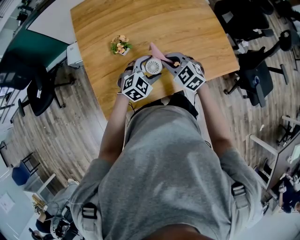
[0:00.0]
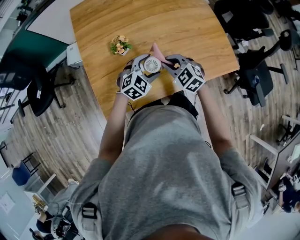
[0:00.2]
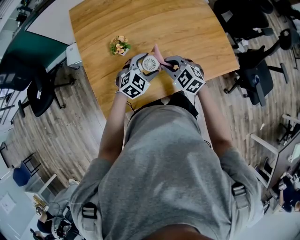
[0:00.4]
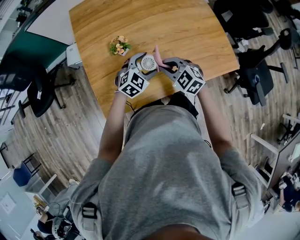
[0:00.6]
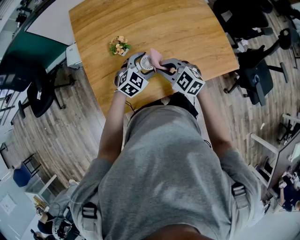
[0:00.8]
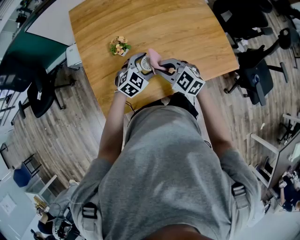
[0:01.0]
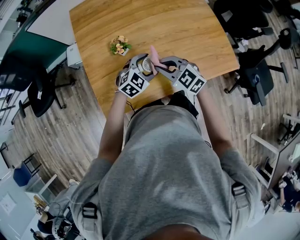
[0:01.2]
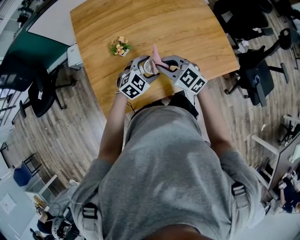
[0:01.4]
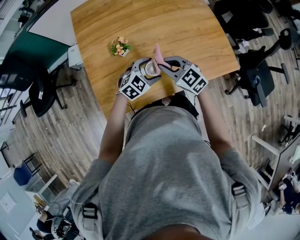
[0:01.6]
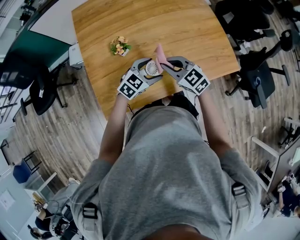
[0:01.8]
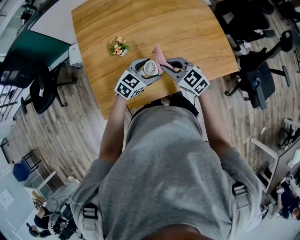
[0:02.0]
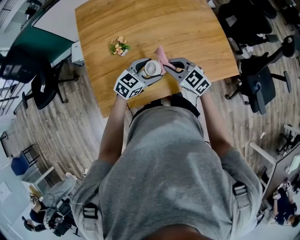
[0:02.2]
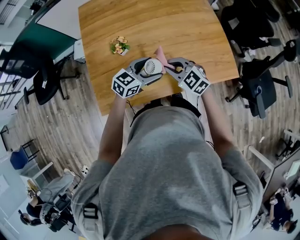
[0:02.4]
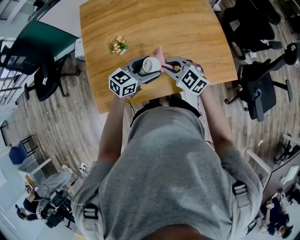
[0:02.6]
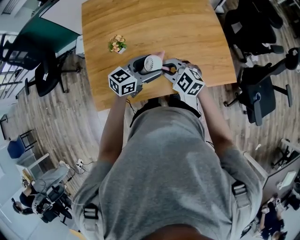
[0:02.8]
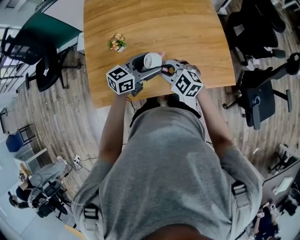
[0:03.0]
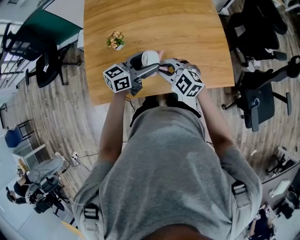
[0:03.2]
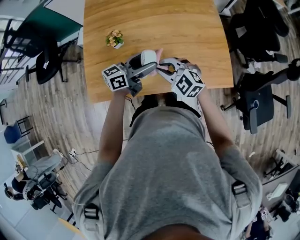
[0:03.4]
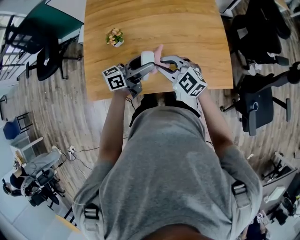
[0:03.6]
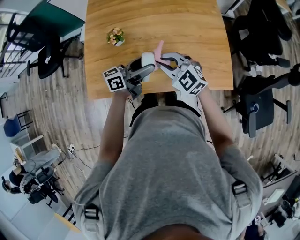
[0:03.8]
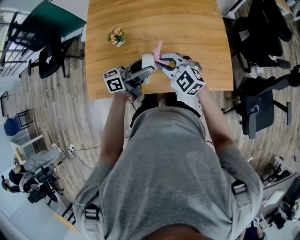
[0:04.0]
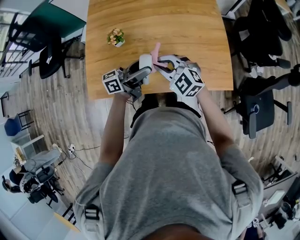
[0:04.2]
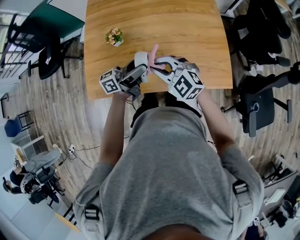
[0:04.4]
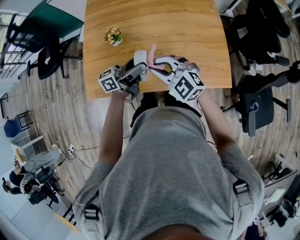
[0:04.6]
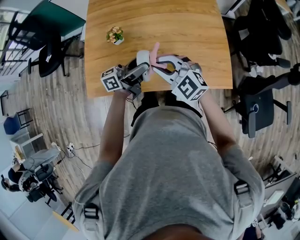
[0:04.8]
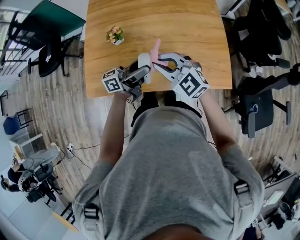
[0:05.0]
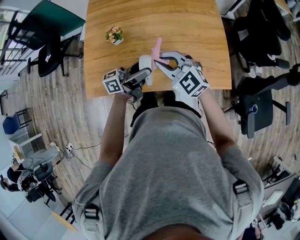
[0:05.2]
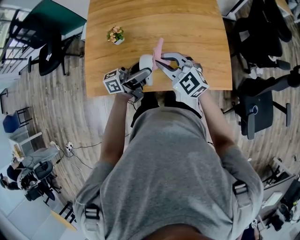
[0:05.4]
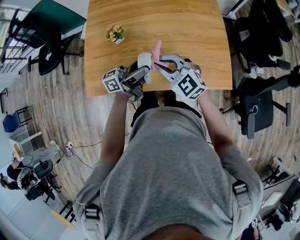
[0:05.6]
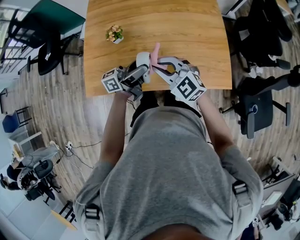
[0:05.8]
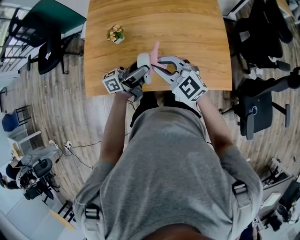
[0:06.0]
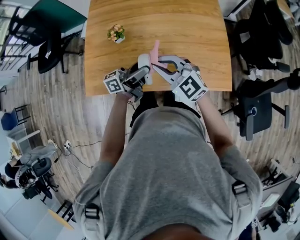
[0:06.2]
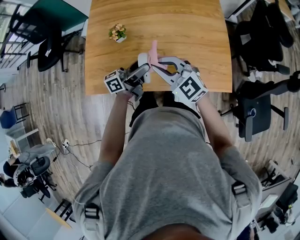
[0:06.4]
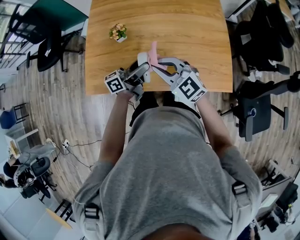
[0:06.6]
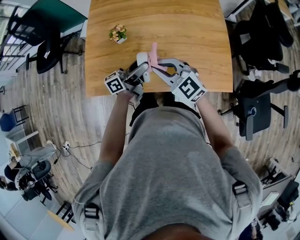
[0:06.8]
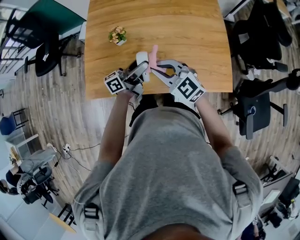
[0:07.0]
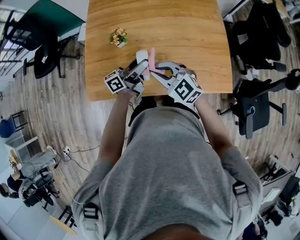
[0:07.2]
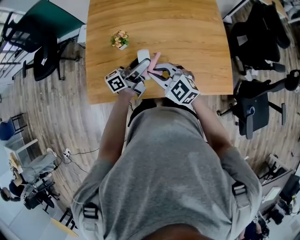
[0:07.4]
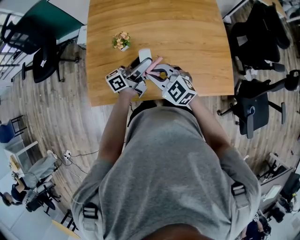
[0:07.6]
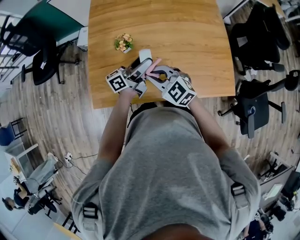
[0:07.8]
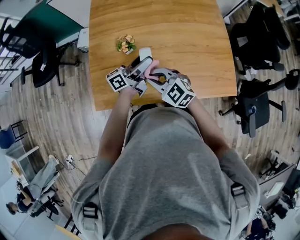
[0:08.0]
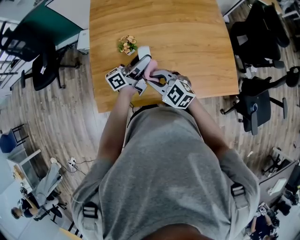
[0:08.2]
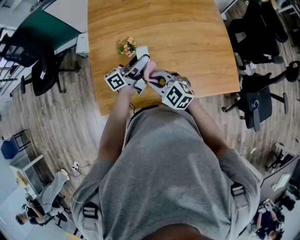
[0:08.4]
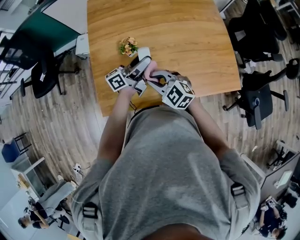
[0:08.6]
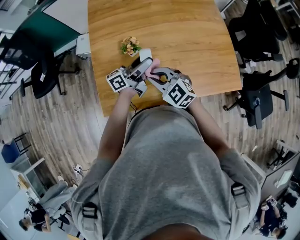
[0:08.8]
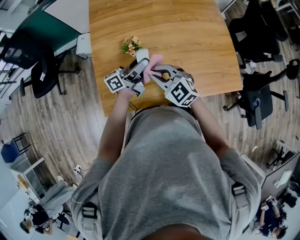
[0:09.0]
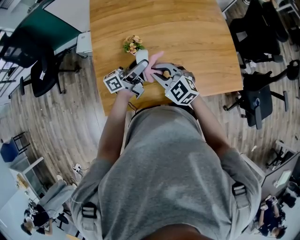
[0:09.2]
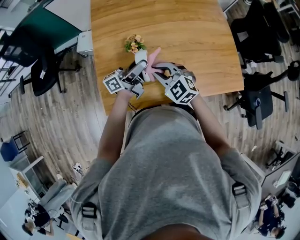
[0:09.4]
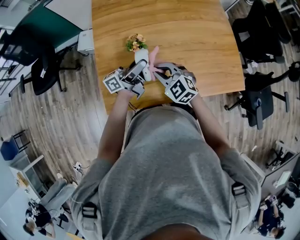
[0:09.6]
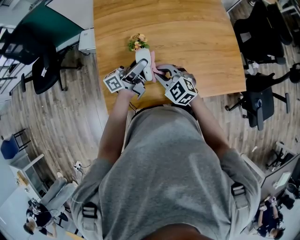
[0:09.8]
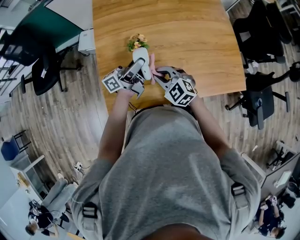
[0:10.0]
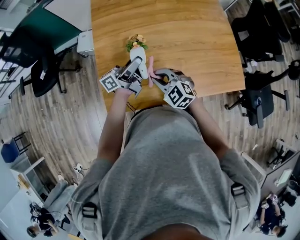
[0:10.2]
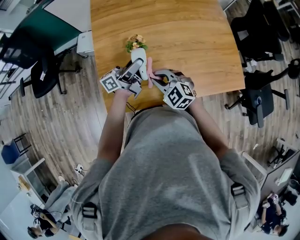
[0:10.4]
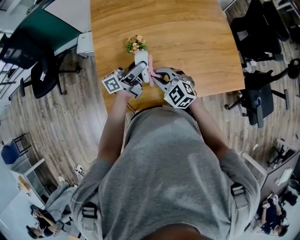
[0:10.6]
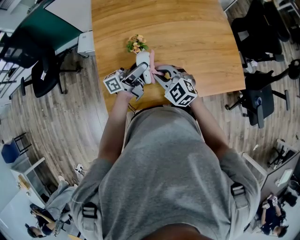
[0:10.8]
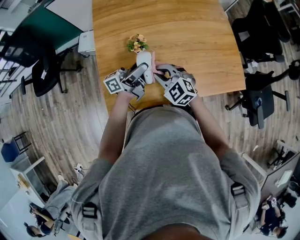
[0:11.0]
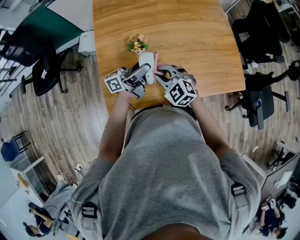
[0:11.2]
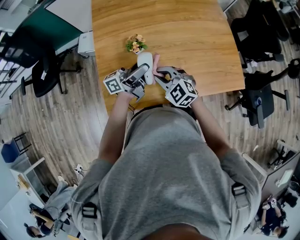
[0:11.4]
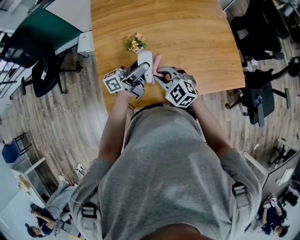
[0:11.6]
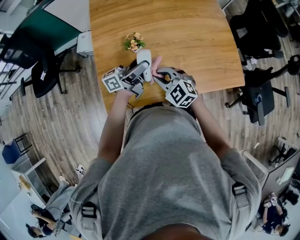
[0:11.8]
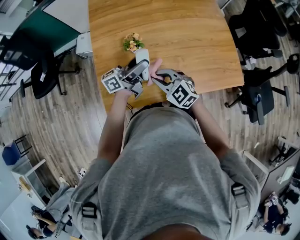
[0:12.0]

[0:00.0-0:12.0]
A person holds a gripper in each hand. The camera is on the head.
0:00.0 to 0:01.6: The grippers stay close to where they were, moving slightly.
0:01.6 to 0:03.0: The right gripper heads to the right, covering roughly 5 cm, and rotates approximately 20 degrees; the left gripper travels upward and to the right by roughly 10 cm, and turns by approximately 50 degrees.
0:03.0 to 0:04.4: The left gripper turns by about 40 degrees. The right gripper travels upward by about 5 cm.
0:04.4 to 0:06.0: The grippers move only a little.
0:06.0 to 0:07.6: The right gripper goes some 10 cm to the left, while the left gripper shifts about 10 cm forward and to the left.
0:07.6 to 0:09.0: The two grippers go roughly 10 cm to the left.
0:09.0 to 0:10.4: The right gripper goes approximately 5 cm downward.
0:10.4 to 0:12.0: There are only small adjustments of the grippers.

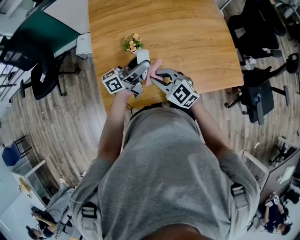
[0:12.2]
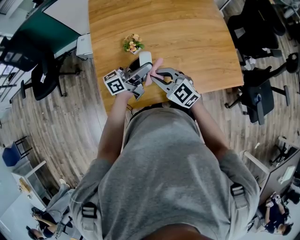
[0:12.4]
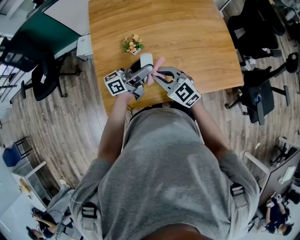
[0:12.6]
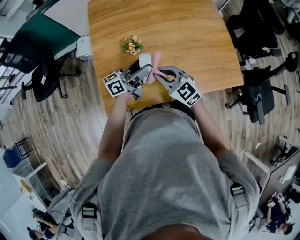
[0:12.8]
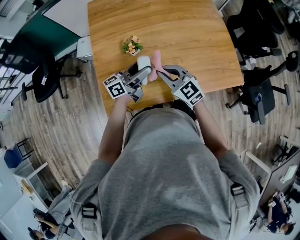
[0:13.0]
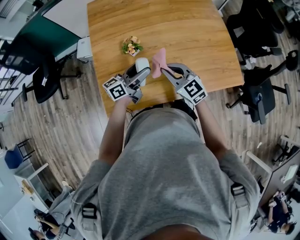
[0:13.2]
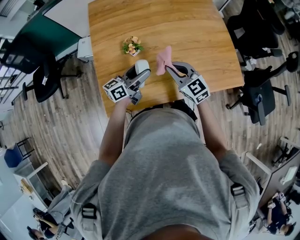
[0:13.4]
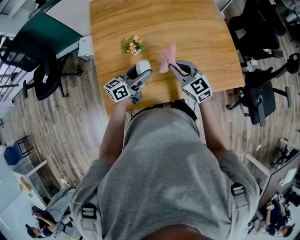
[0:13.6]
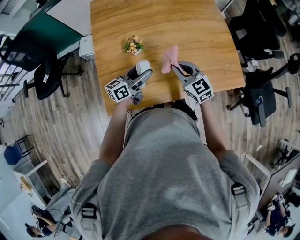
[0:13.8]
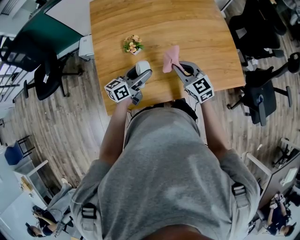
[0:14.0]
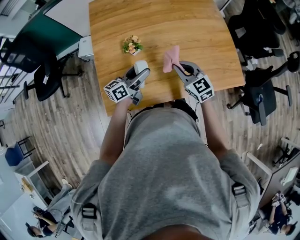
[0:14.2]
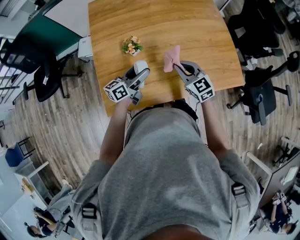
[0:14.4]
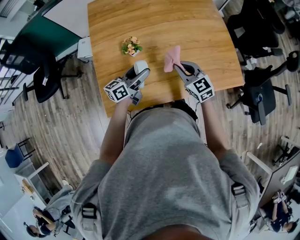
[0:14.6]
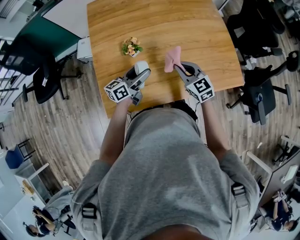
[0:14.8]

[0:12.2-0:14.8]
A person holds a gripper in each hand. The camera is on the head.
0:12.2 to 0:13.4: The left gripper travels downward by roughly 5 cm; the right gripper goes approximately 10 cm to the right.
0:13.4 to 0:14.8: The right gripper shifts by about 5 cm.

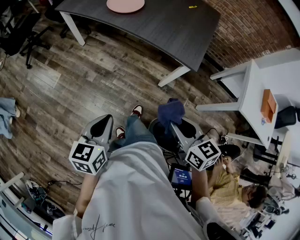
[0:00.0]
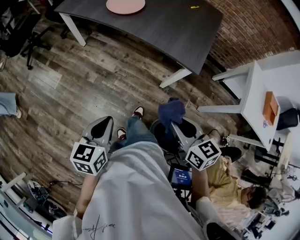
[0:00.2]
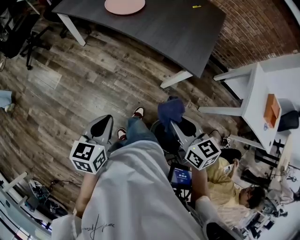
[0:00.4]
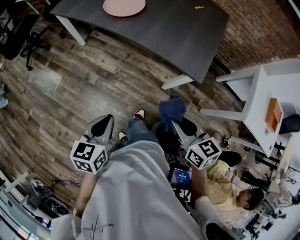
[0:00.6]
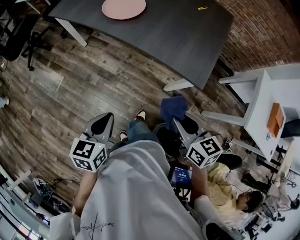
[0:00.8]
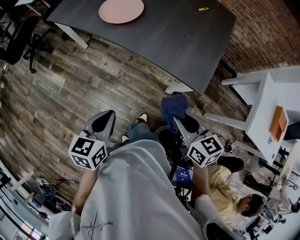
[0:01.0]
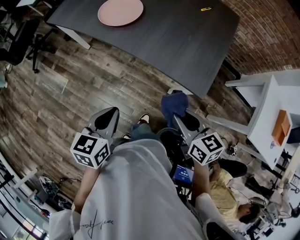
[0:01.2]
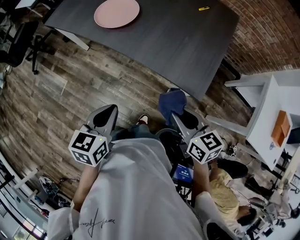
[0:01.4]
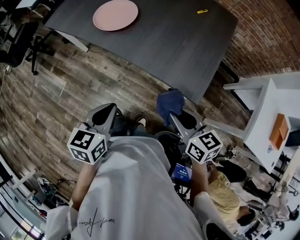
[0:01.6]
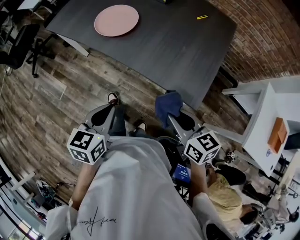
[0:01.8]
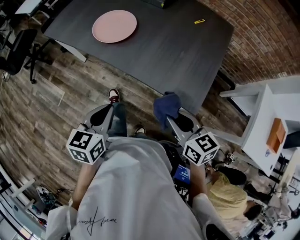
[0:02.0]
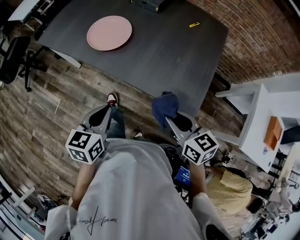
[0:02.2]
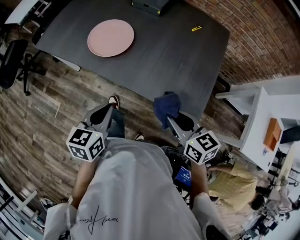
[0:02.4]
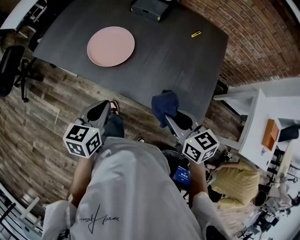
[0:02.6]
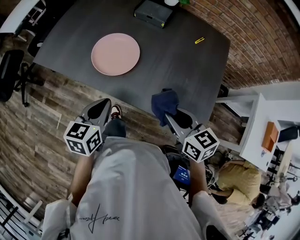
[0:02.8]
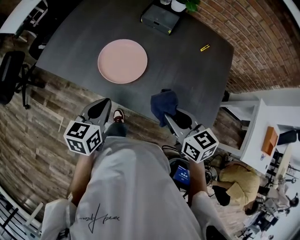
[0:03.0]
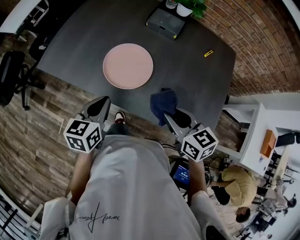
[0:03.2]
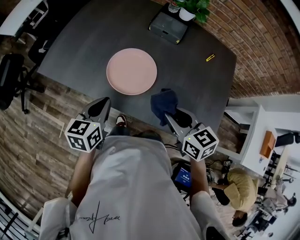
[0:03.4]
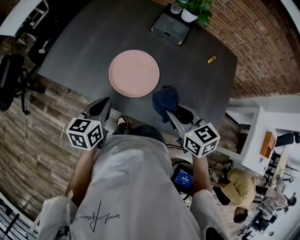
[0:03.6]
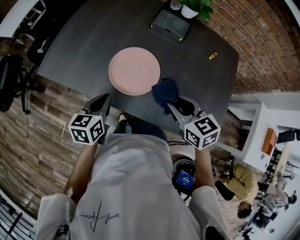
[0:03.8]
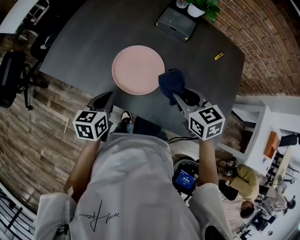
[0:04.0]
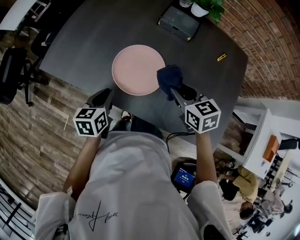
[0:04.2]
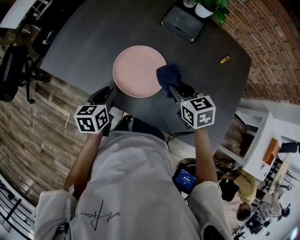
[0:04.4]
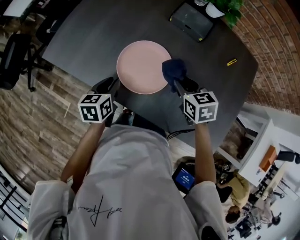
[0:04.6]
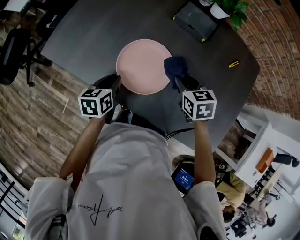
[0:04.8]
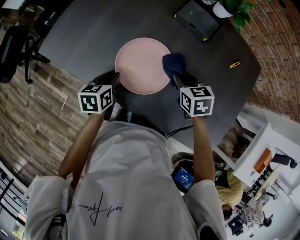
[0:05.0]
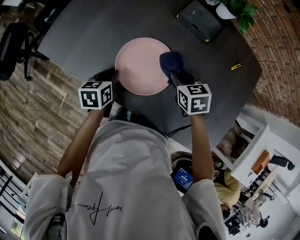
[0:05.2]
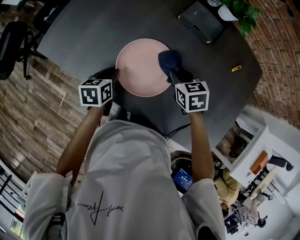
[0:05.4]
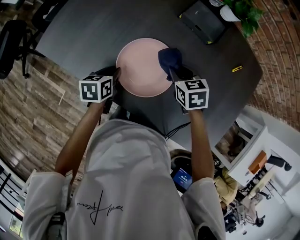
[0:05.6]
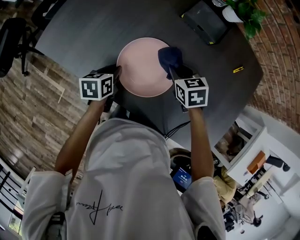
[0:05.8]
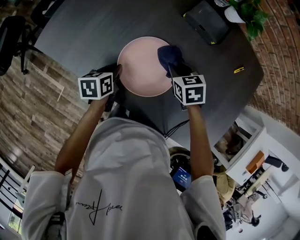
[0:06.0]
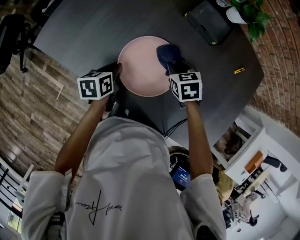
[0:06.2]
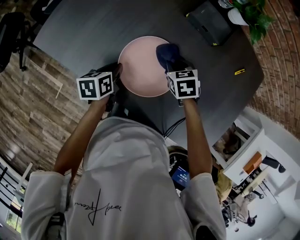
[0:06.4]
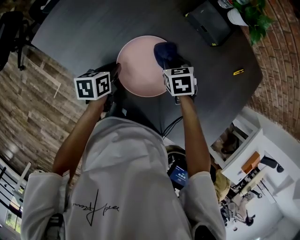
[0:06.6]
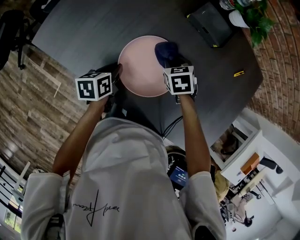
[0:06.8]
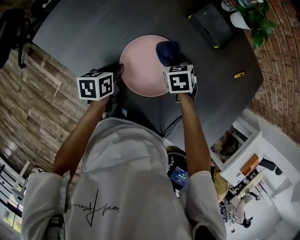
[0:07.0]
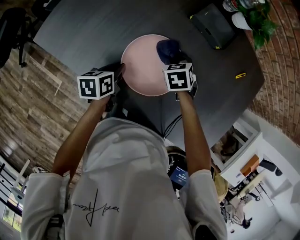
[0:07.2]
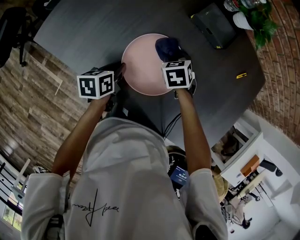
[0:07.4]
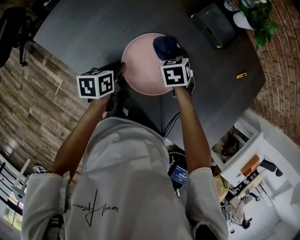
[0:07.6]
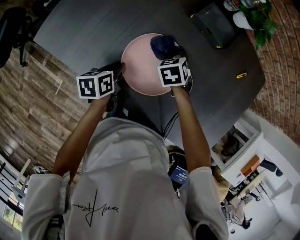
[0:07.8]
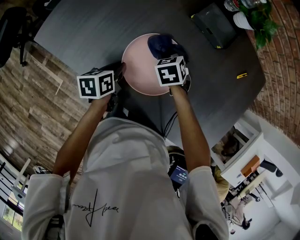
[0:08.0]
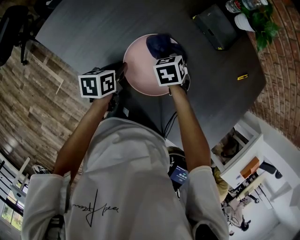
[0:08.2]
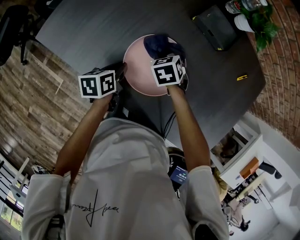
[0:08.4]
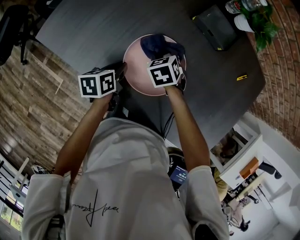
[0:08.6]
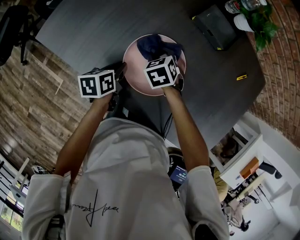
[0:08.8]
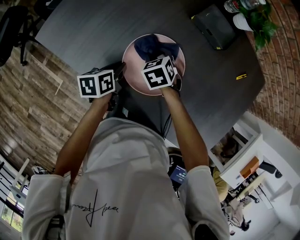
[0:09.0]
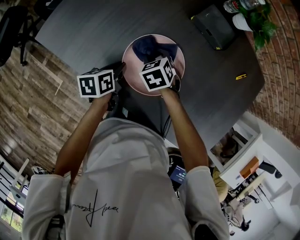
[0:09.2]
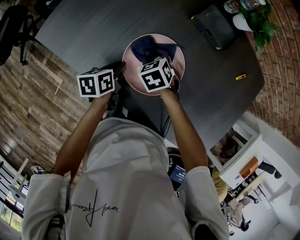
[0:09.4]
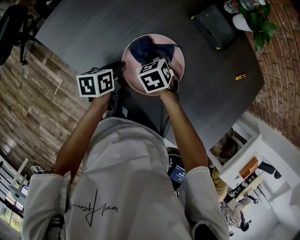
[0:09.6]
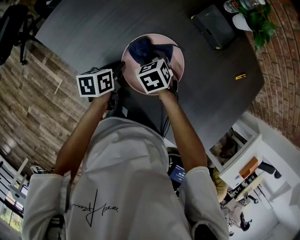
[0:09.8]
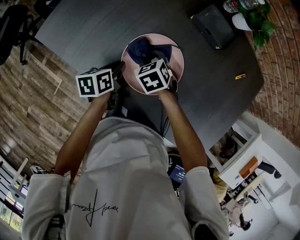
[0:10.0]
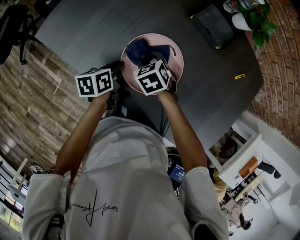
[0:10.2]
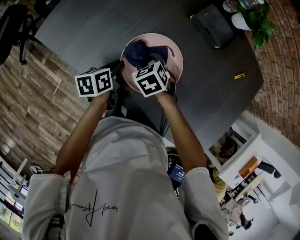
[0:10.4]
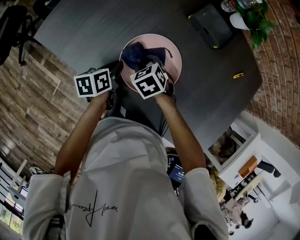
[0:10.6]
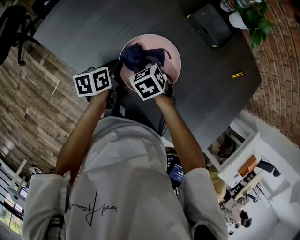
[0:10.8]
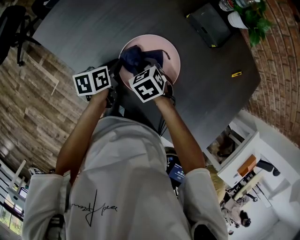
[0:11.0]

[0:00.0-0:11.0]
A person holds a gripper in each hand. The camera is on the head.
0:00.0 to 0:01.6: The right gripper travels forward by roughly 25 cm. Meanwhile the left gripper is displaced forward and to the right by some 25 cm.
0:01.6 to 0:03.2: Both grippers move forward and to the left, approximately 35 cm.
0:03.2 to 0:04.8: Both grippers travel together forward and downward, some 20 cm. The right gripper rotates about 20 degrees.
0:04.8 to 0:06.2: The left gripper travels downward by roughly 5 cm. The right gripper is displaced downward and forward by about 10 cm.
0:06.2 to 0:07.8: The right gripper moves to the left, roughly 5 cm.
0:07.8 to 0:09.4: The right gripper is displaced to the left by roughly 5 cm.
0:09.4 to 0:11.0: The right gripper goes some 5 cm backward.
